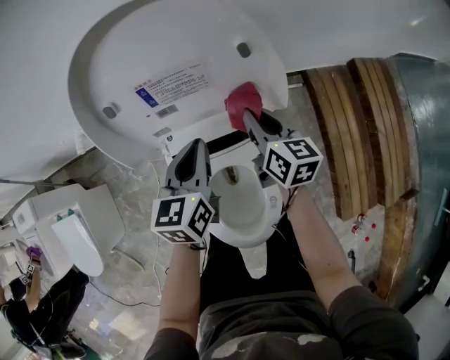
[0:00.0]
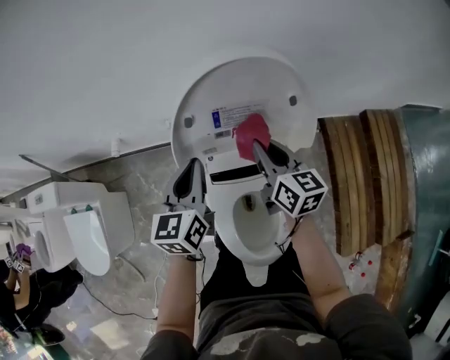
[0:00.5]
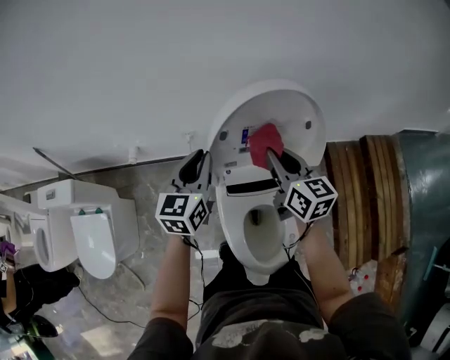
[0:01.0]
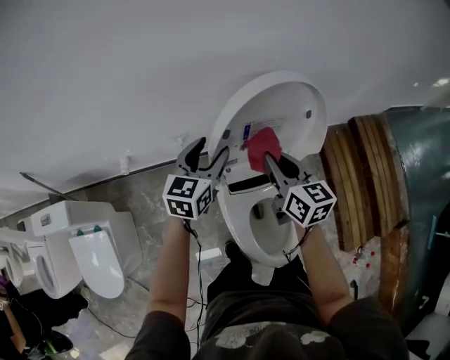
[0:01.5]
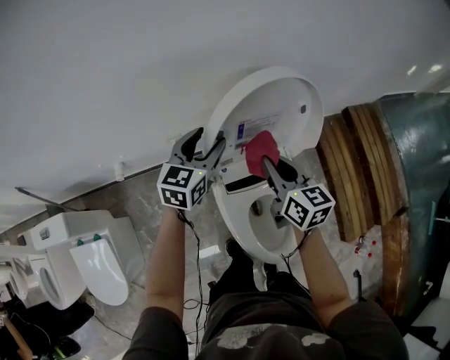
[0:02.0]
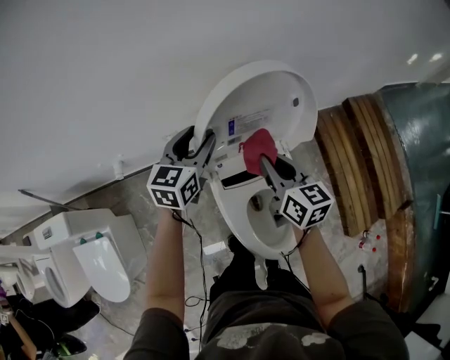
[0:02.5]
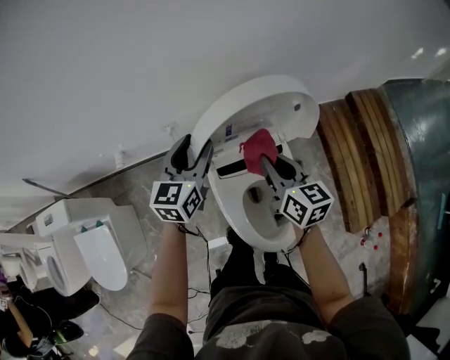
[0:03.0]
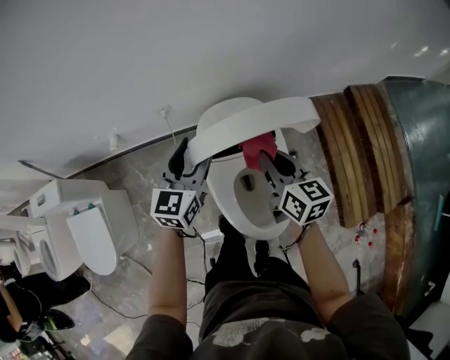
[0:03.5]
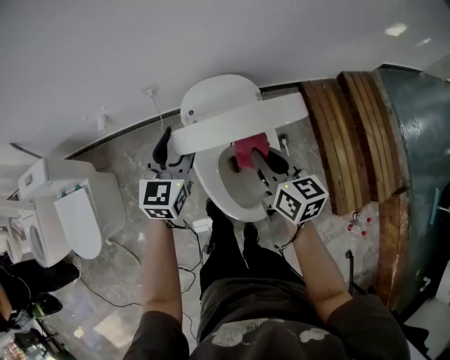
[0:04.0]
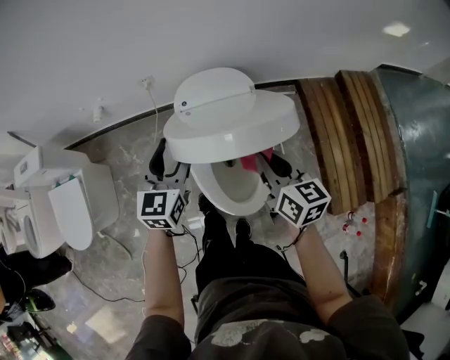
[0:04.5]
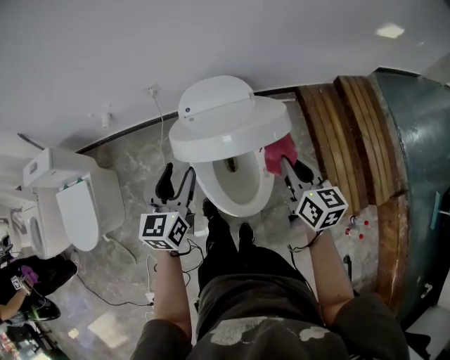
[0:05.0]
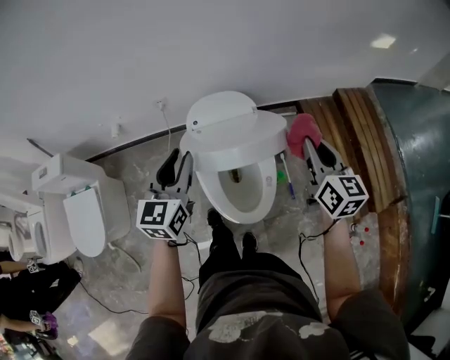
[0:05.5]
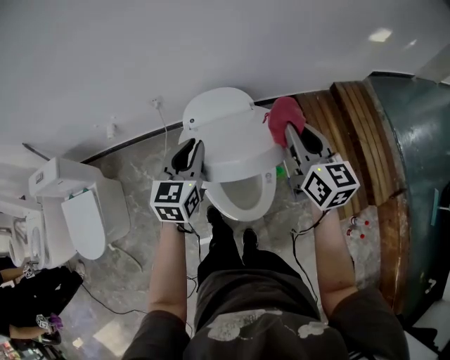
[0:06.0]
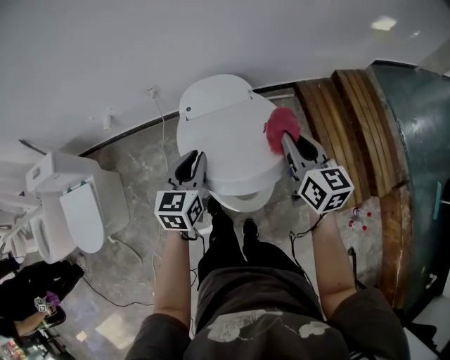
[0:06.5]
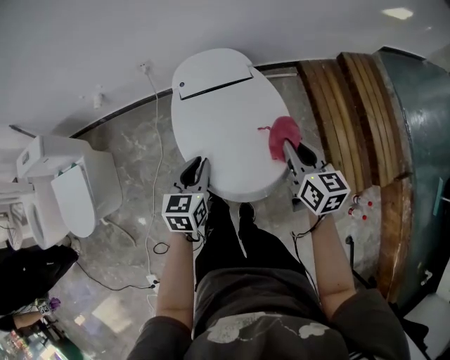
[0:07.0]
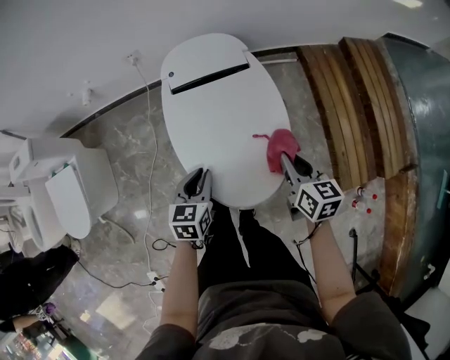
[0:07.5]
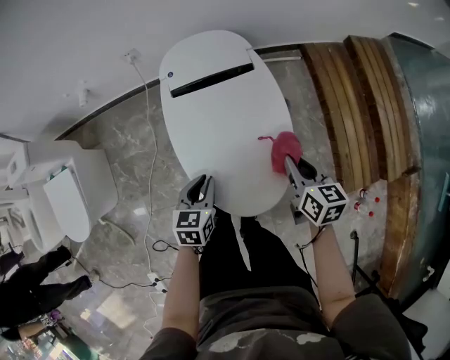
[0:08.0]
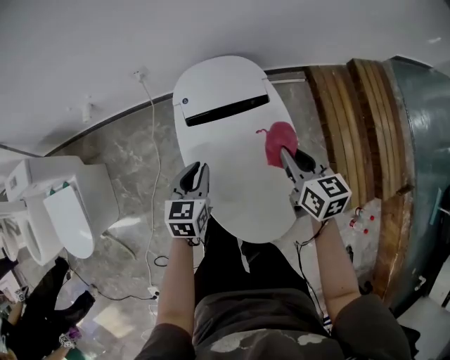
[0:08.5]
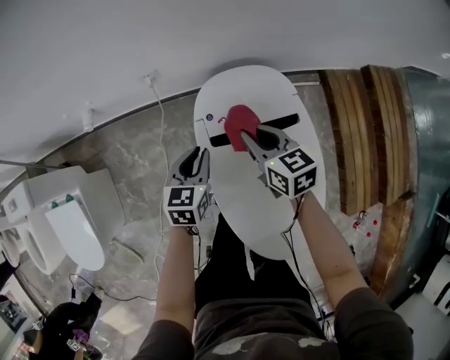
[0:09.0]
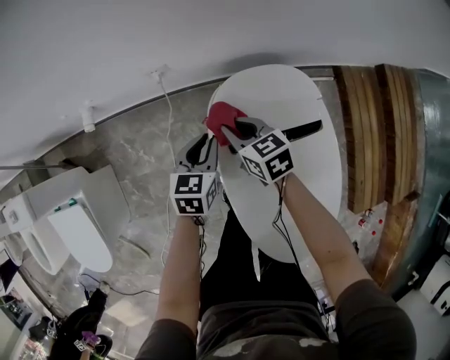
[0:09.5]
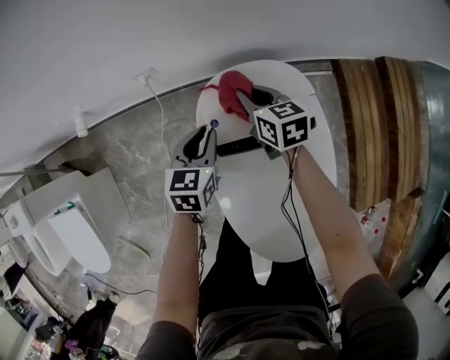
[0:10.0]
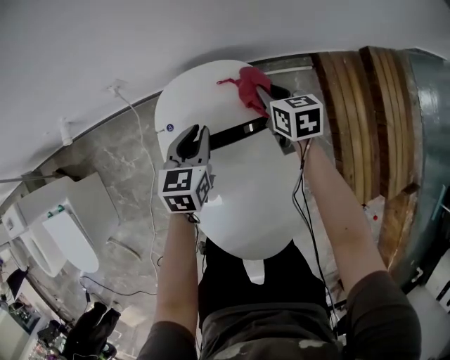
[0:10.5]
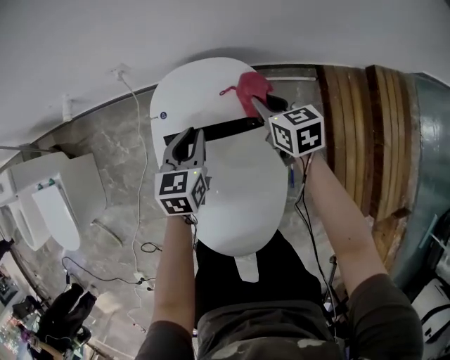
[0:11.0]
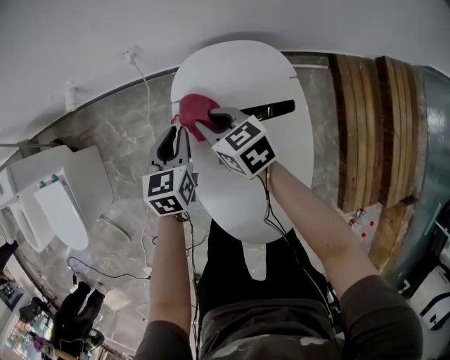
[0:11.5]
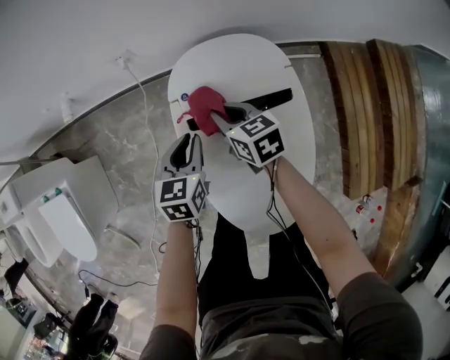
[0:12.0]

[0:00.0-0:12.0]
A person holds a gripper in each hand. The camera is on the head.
0:00.0 to 0:02.0: The right gripper is displaced to the left and upward by roughly 20 cm. Meanwhile the left gripper heads to the left, upward and forward, covering roughly 20 cm, rotates about 30 degrees, and opens up.
0:02.0 to 0:04.0: The right gripper heads backward and to the right, covering roughly 20 cm, while the left gripper moves backward, some 20 cm.
0:04.0 to 0:06.0: The left gripper goes approximately 5 cm backward, and closes; the right gripper moves upward and to the right, some 15 cm.
0:06.0 to 0:08.0: The right gripper travels downward by some 30 cm, and rotates approximately 30 degrees. Meanwhile the left gripper heads downward and backward, covering approximately 30 cm, and swivels some 30 degrees.
0:08.0 to 0:10.0: The left gripper heads forward, covering some 35 cm, while the right gripper shifts roughly 50 cm forward and to the left.
0:10.0 to 0:12.0: The left gripper is displaced backward by about 10 cm, and travels to the right and back again, roughly 10 cm each way; the right gripper moves left and right over about 25 cm, changing direction 2 times.

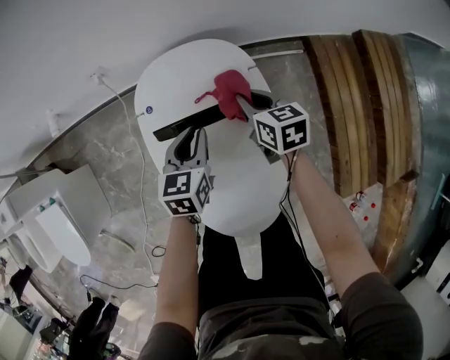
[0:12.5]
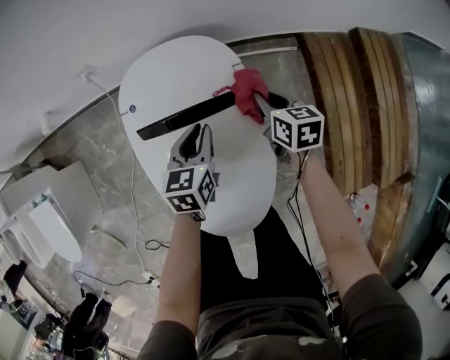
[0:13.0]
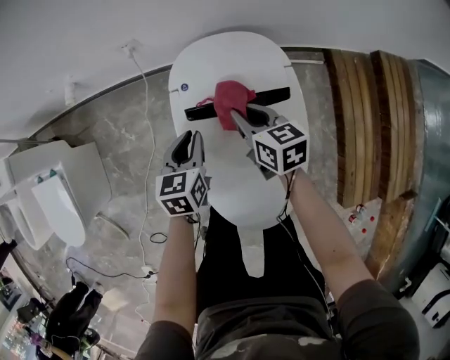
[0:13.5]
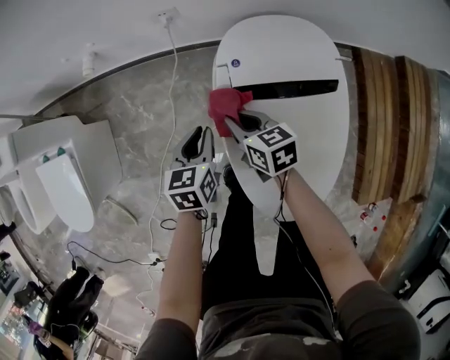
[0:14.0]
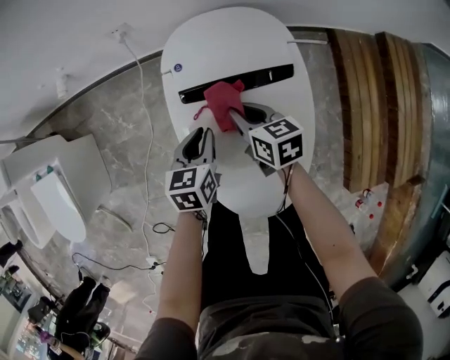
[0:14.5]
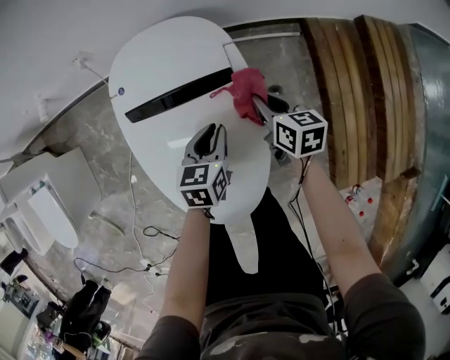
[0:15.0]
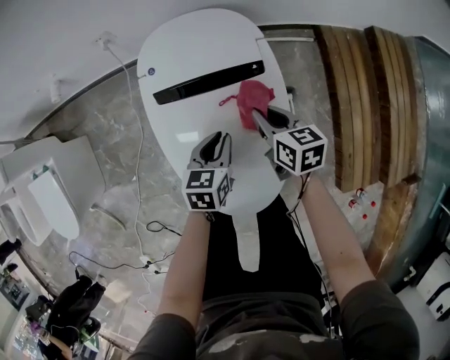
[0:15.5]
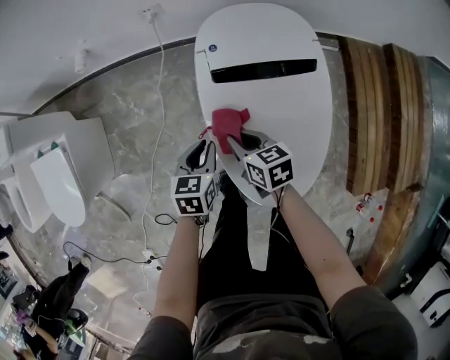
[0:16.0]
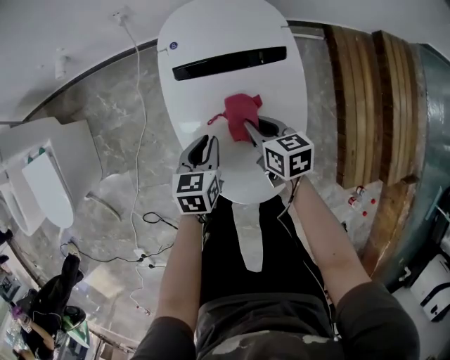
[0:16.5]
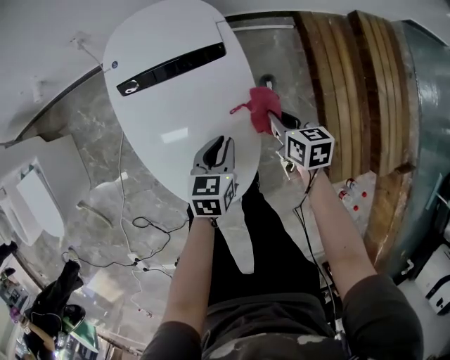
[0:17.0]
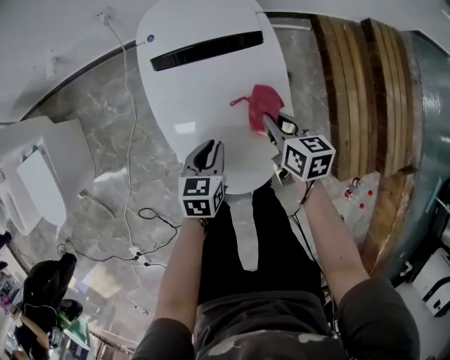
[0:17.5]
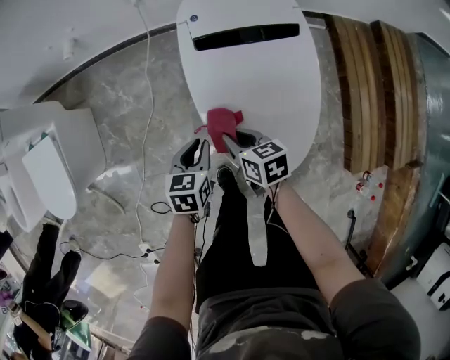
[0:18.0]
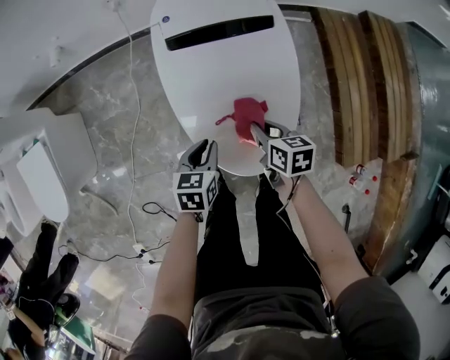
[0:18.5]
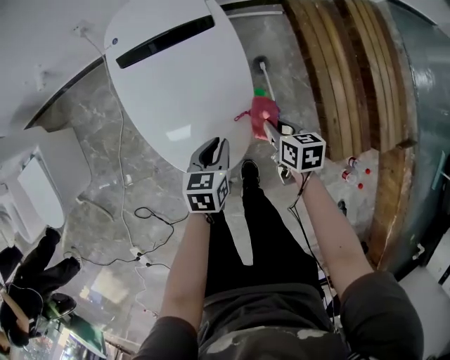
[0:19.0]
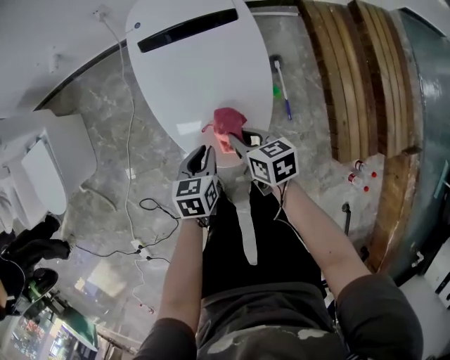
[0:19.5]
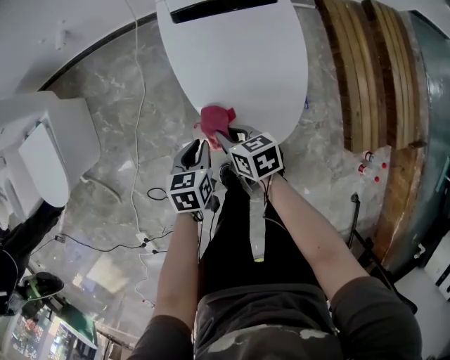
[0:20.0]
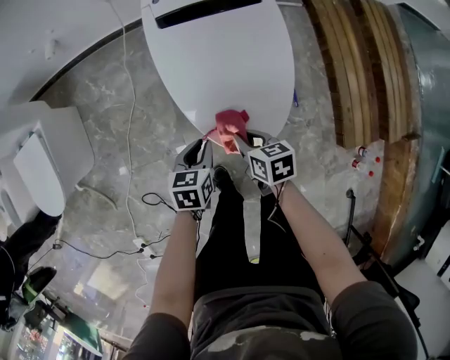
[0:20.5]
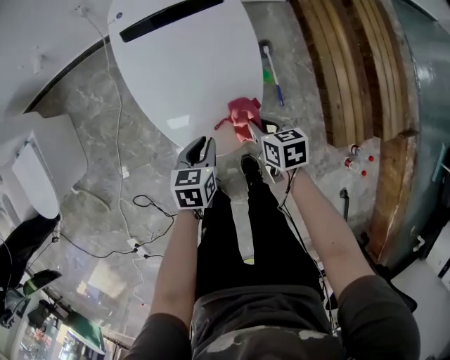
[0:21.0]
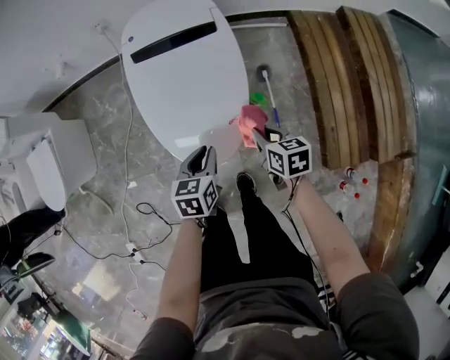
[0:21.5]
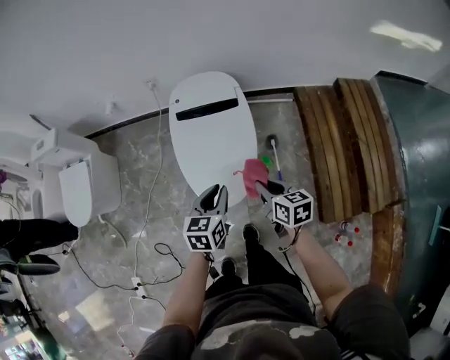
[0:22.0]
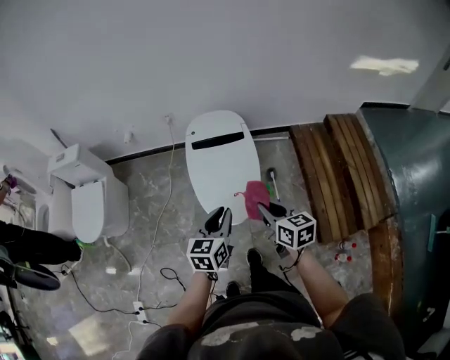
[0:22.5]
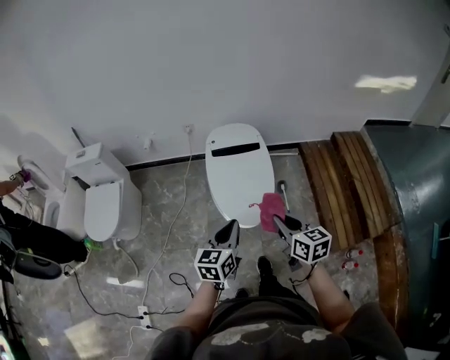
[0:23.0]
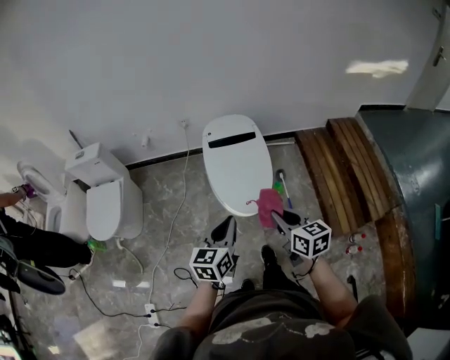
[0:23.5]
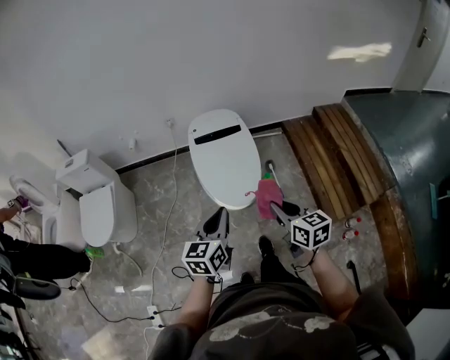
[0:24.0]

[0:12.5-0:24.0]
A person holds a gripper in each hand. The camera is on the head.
0:12.5 to 0:14.5: The left gripper goes left and right, about 25 cm each way, reversing 2 times. Meanwhile the right gripper moves left and right over some 35 cm, changing direction 2 times.
0:14.5 to 0:16.5: The right gripper moves left and right over approximately 30 cm, changing direction 2 times. The left gripper swings left and right, some 25 cm each way, with 2 reversals.
0:16.5 to 0:18.5: The left gripper swings left and right, roughly 30 cm each way, with 2 reversals, while the right gripper swings left and right, some 35 cm each way, with 2 reversals.
0:18.5 to 0:20.0: The left gripper travels backward by roughly 5 cm, and travels to the right and back again, approximately 15 cm each way; the right gripper travels to the left and backward by approximately 15 cm.
0:20.0 to 0:22.0: The left gripper is displaced upward and to the right by roughly 30 cm. Meanwhile the right gripper heads to the right and upward, covering roughly 35 cm.
0:22.0 to 0:24.0: The left gripper travels backward, upward and to the left by approximately 25 cm, while the right gripper is displaced backward and upward by roughly 25 cm.

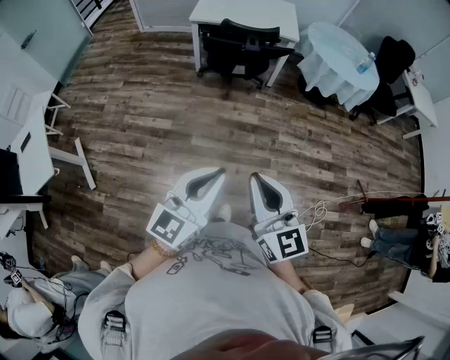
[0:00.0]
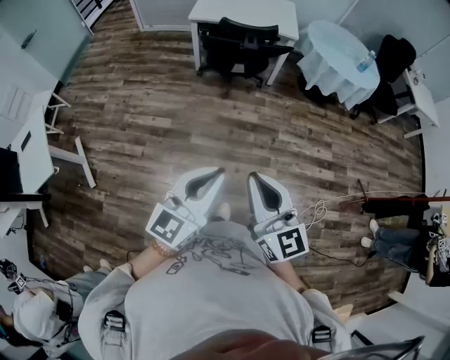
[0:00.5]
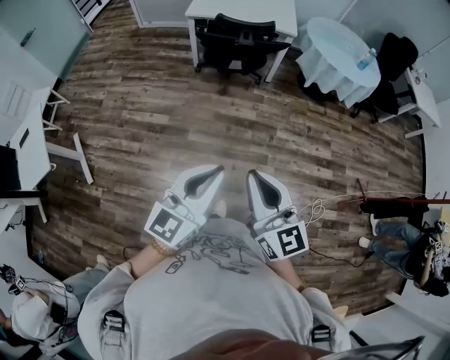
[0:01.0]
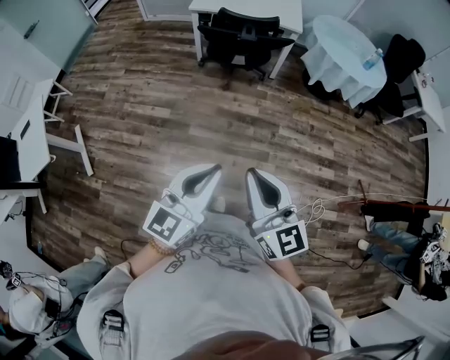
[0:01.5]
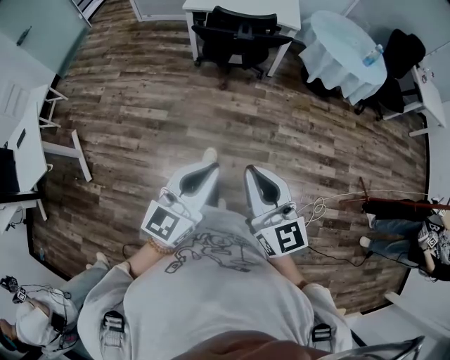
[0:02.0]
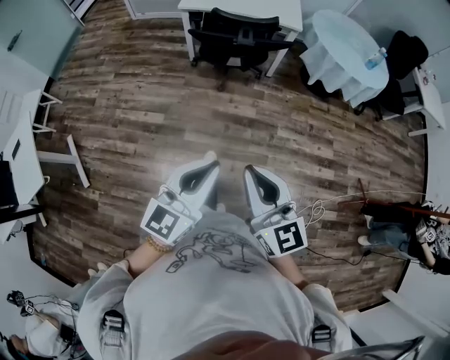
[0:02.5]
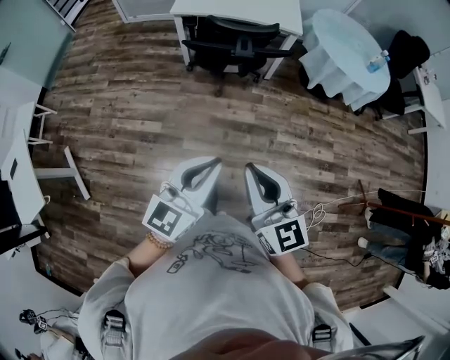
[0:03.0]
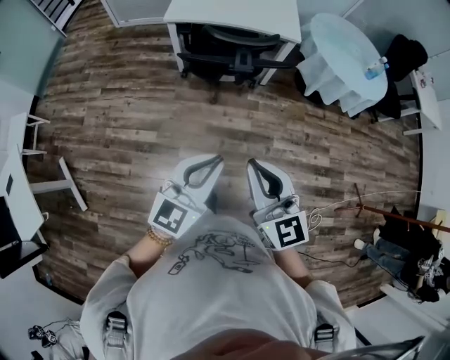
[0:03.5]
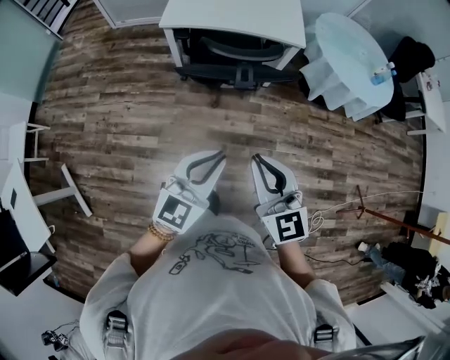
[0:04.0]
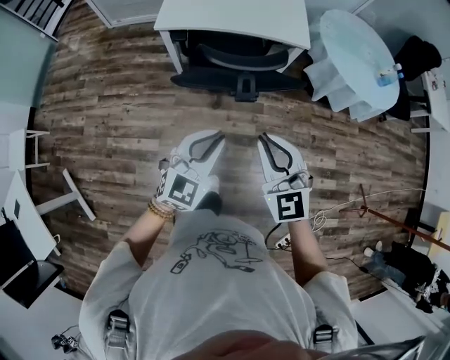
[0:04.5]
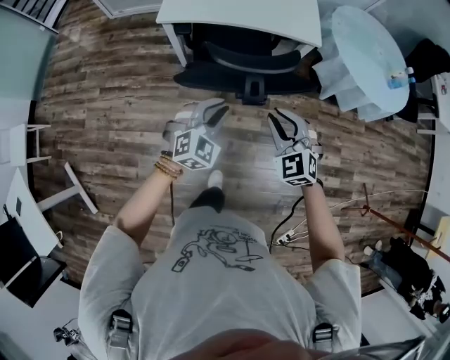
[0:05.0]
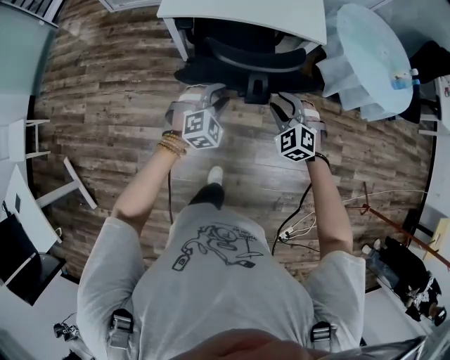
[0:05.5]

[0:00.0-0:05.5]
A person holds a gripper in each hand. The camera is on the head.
0:00.0 to 0:02.0: Both grippers move forward and to the right, roughly 10 cm.
0:02.0 to 0:03.5: Both grippers move forward, about 30 cm.
0:03.5 to 0:05.5: The two grippers travel together, forward, about 40 cm. The grippers both shift downward by some 25 cm. The right gripper tilts its fingers about 40 degrees downward, and opens up, while the left gripper tilts its fingers about 40 degrees downward, and opens its fingers.
